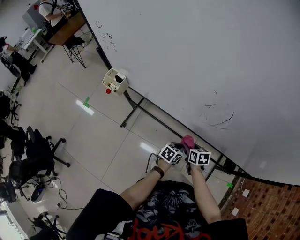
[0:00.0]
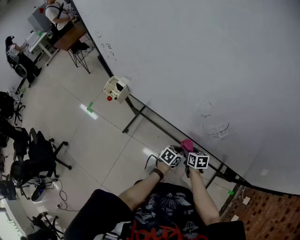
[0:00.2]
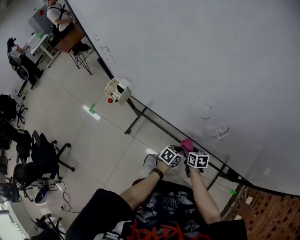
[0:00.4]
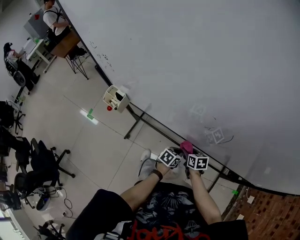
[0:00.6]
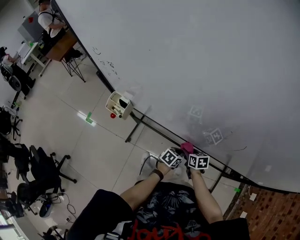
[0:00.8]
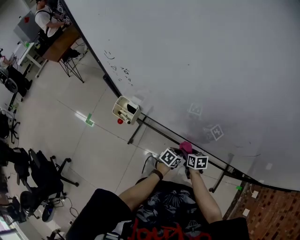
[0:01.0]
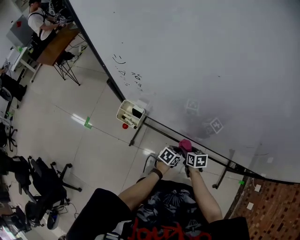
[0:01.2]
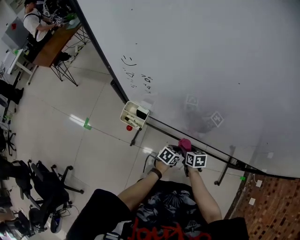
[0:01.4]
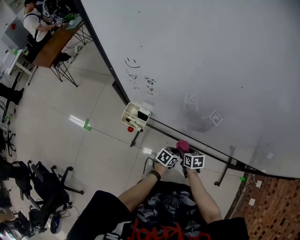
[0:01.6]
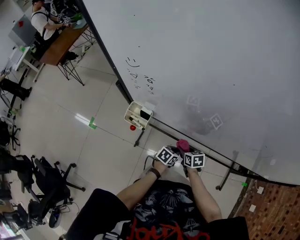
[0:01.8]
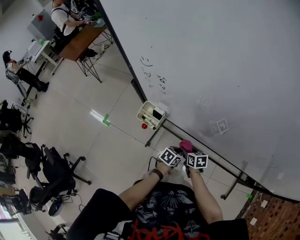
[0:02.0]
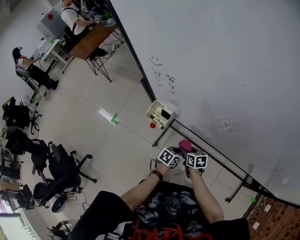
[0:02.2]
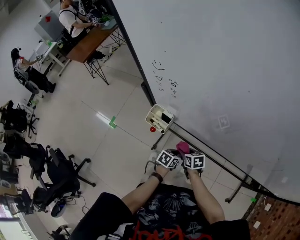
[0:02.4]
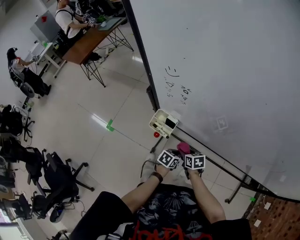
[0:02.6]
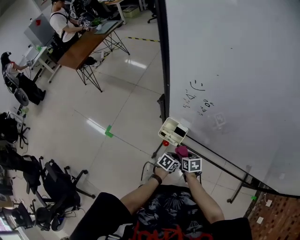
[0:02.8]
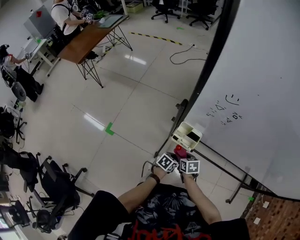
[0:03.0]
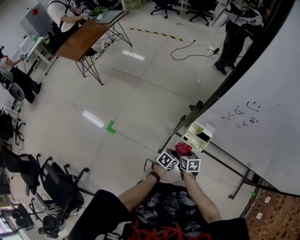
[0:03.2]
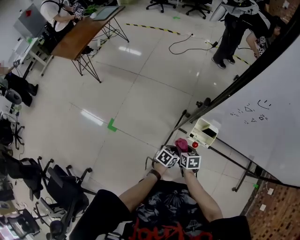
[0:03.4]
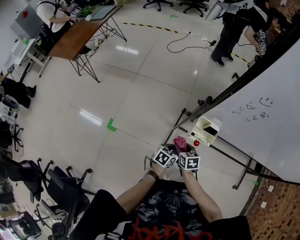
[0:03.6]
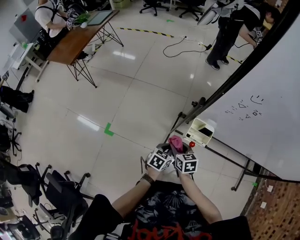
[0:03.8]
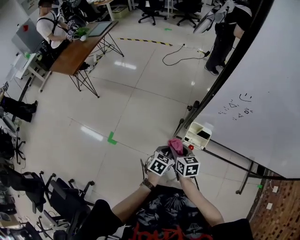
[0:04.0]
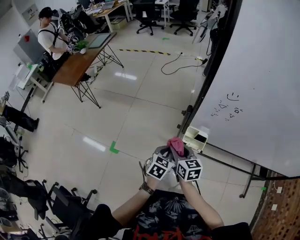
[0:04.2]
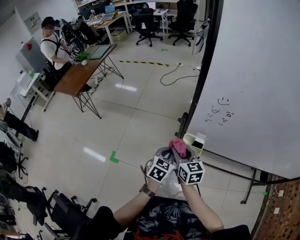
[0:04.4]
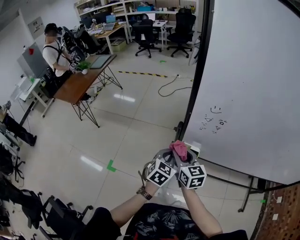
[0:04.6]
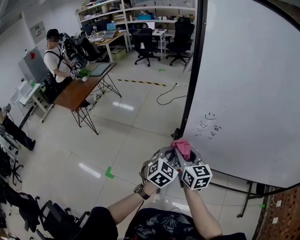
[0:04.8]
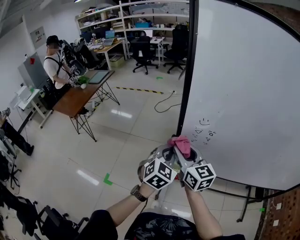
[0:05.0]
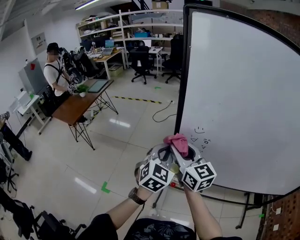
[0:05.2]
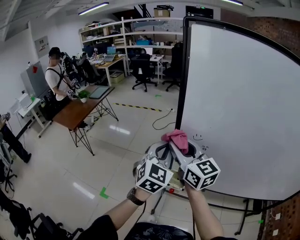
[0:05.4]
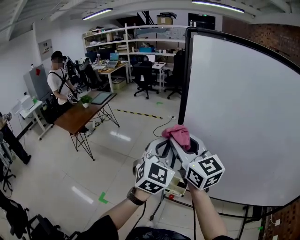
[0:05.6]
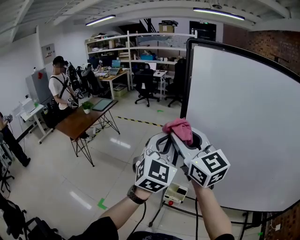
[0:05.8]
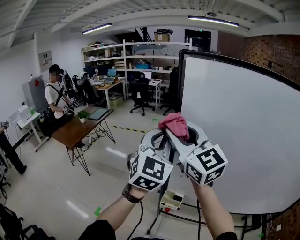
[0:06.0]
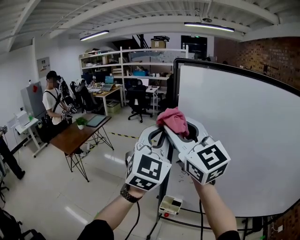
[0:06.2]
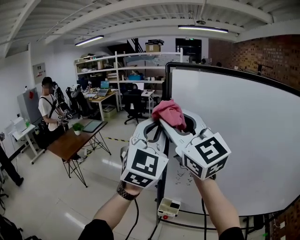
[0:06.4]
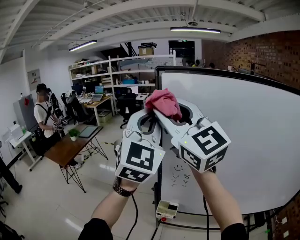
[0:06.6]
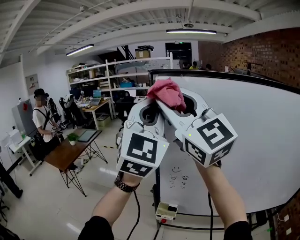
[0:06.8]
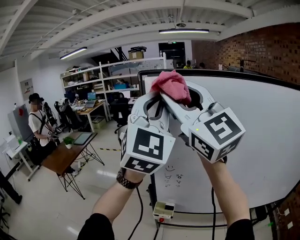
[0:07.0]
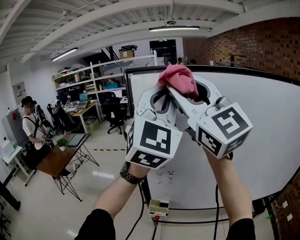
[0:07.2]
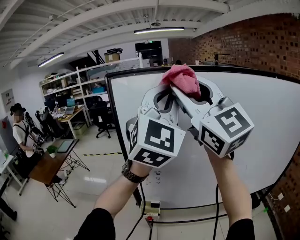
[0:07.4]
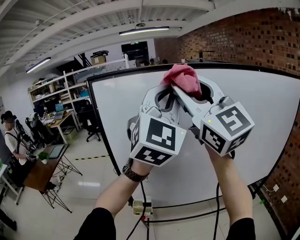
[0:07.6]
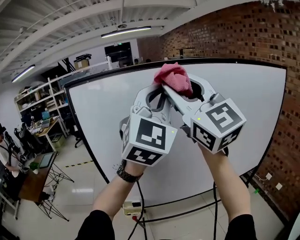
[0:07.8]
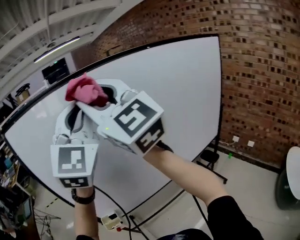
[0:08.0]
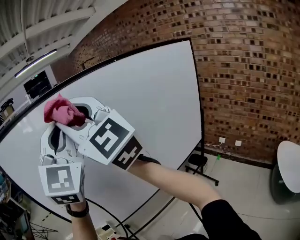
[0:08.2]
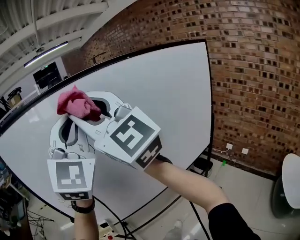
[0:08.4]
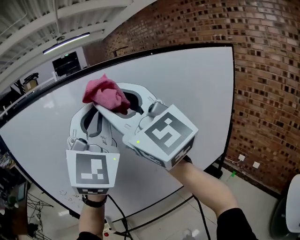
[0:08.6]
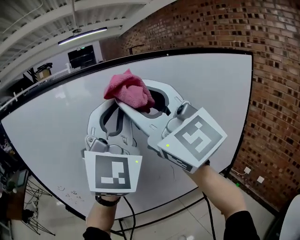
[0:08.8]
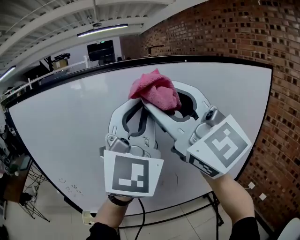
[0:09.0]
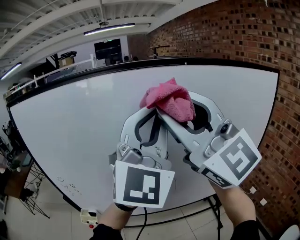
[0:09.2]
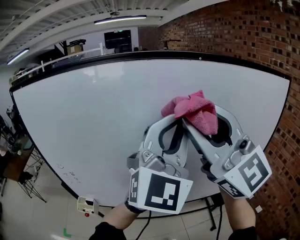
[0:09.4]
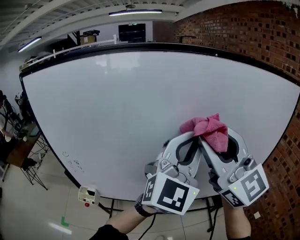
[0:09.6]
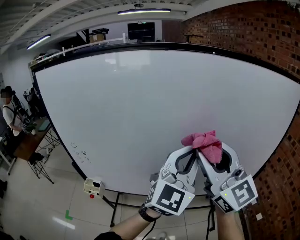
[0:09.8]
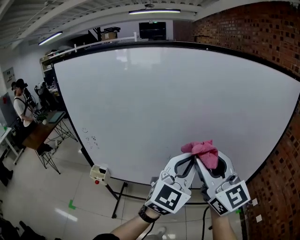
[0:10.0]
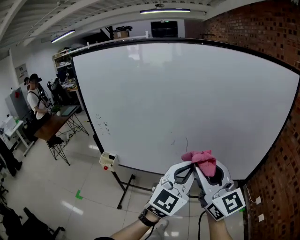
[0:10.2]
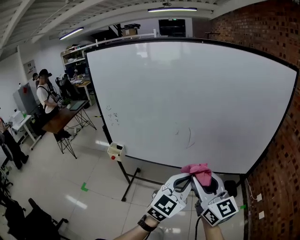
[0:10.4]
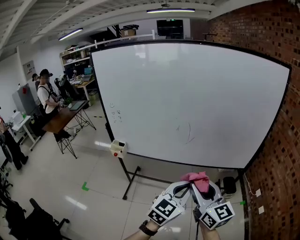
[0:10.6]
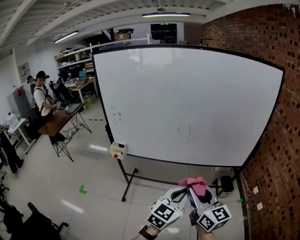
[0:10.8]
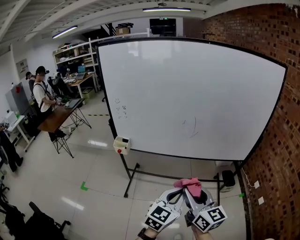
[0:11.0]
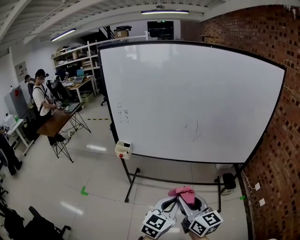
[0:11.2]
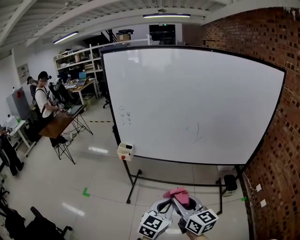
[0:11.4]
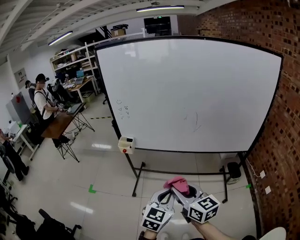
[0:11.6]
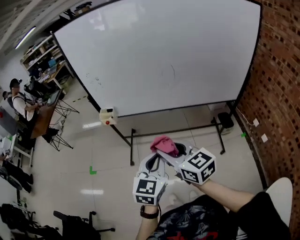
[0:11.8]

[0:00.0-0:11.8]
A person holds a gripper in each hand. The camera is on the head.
0:00.0 to 0:01.4: Both grippers move to the left, about 20 cm.
0:01.4 to 0:03.0: The grippers both shift to the left by approximately 25 cm.
0:03.0 to 0:04.4: The right gripper is displaced upward by about 25 cm, and tips its fingers upward by about 30 degrees; the left gripper is displaced upward and to the left by roughly 25 cm, and changes its angle by roughly 30 degrees.
0:04.4 to 0:06.0: Both grippers move upward, about 40 cm. The left gripper tips its fingers upward by roughly 40 degrees, while the right gripper angles its fingers upward, by approximately 30 degrees.
0:06.0 to 0:07.4: Both grippers move upward, to the right and backward, roughly 25 cm. The right gripper changes its angle by some 30 degrees; the left gripper turns by approximately 30 degrees.
0:07.4 to 0:08.8: The grippers both shift to the right by some 20 cm.
0:08.8 to 0:10.4: The grippers both shift downward, to the right and backward by roughly 40 cm. The left gripper turns by about 40 degrees. Meanwhile the right gripper swivels about 40 degrees.
0:10.4 to 0:11.8: The left gripper moves to the left and backward, roughly 20 cm; the right gripper goes roughly 20 cm to the left, and changes its angle by roughly 20 degrees.

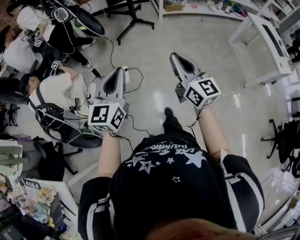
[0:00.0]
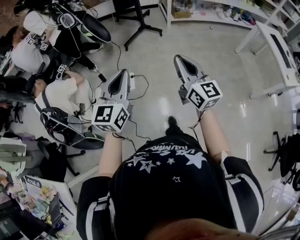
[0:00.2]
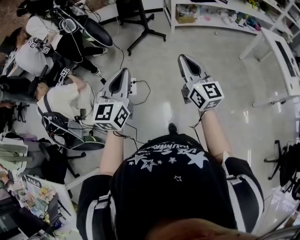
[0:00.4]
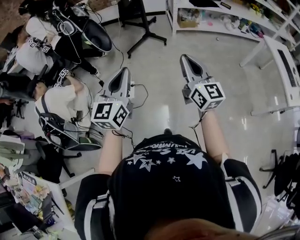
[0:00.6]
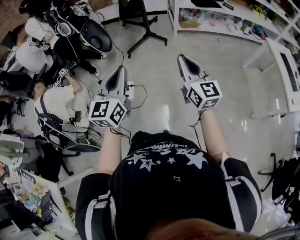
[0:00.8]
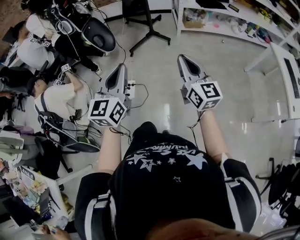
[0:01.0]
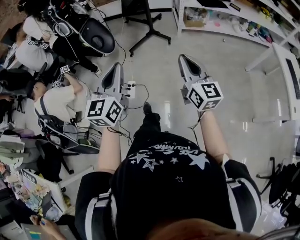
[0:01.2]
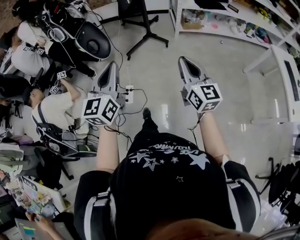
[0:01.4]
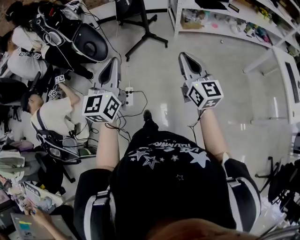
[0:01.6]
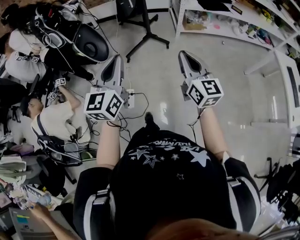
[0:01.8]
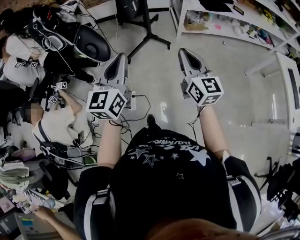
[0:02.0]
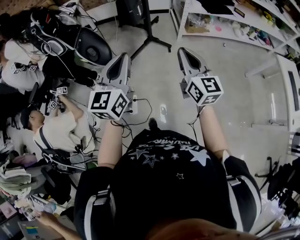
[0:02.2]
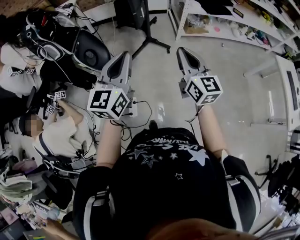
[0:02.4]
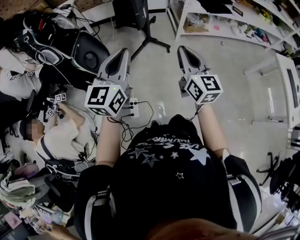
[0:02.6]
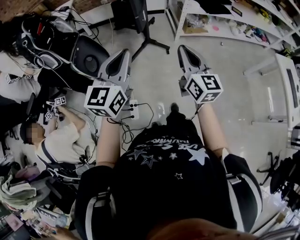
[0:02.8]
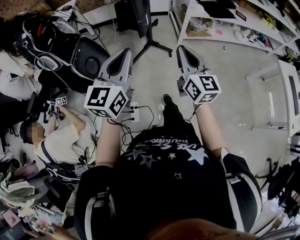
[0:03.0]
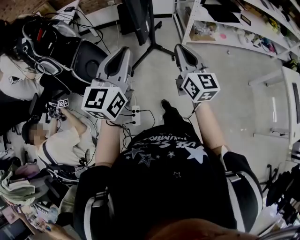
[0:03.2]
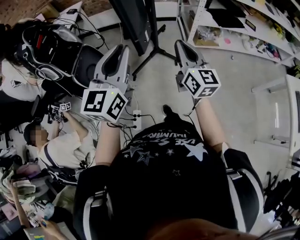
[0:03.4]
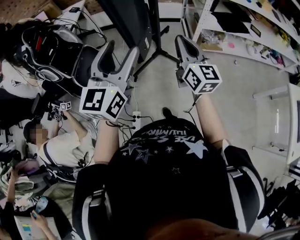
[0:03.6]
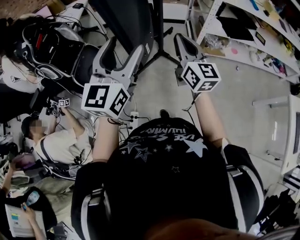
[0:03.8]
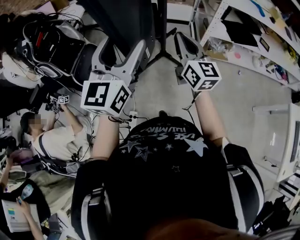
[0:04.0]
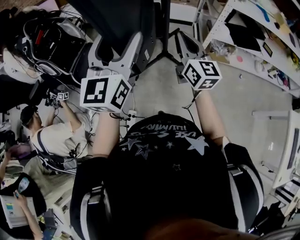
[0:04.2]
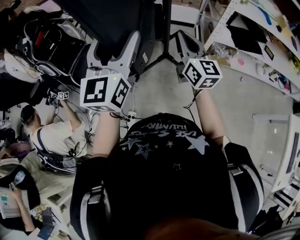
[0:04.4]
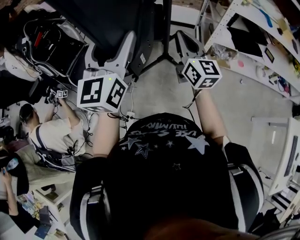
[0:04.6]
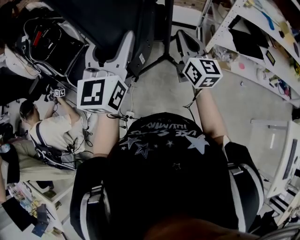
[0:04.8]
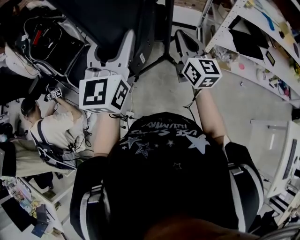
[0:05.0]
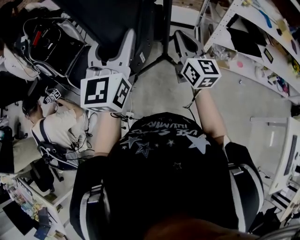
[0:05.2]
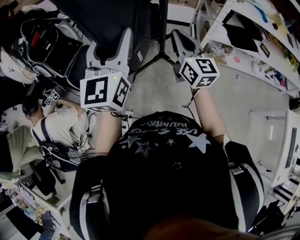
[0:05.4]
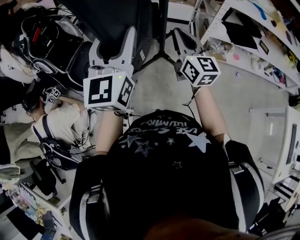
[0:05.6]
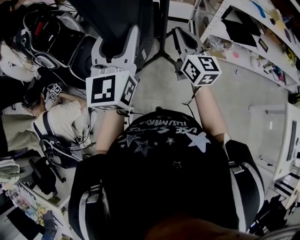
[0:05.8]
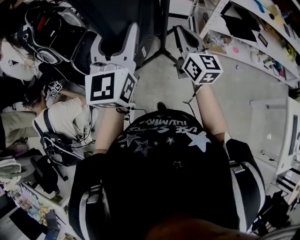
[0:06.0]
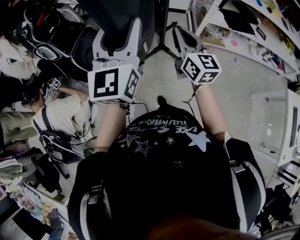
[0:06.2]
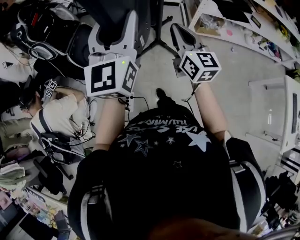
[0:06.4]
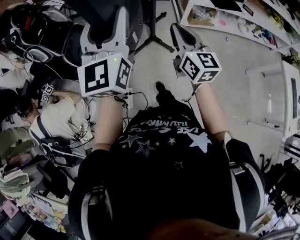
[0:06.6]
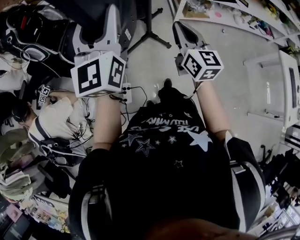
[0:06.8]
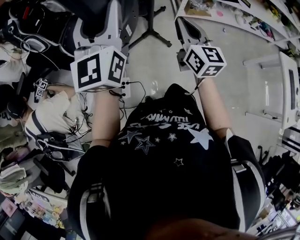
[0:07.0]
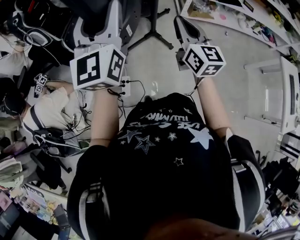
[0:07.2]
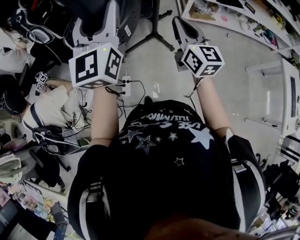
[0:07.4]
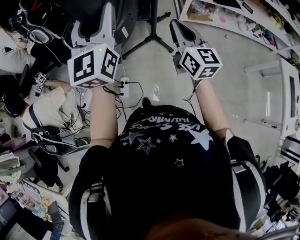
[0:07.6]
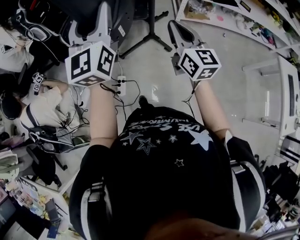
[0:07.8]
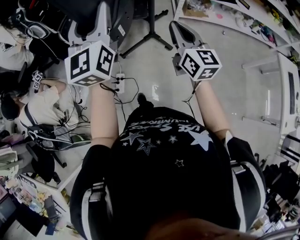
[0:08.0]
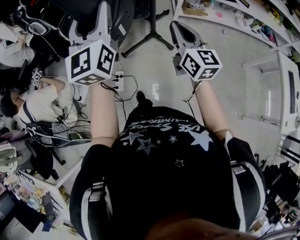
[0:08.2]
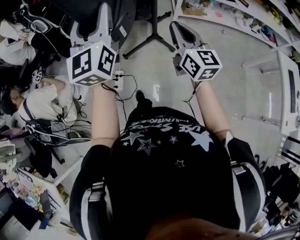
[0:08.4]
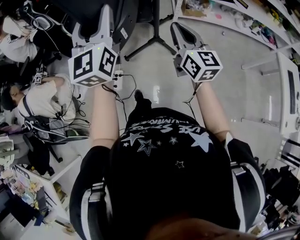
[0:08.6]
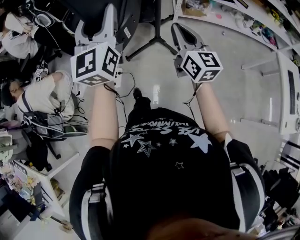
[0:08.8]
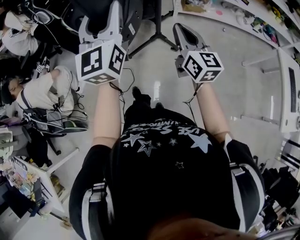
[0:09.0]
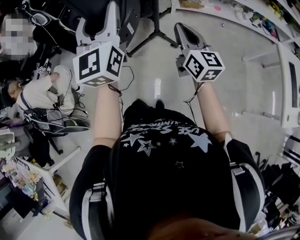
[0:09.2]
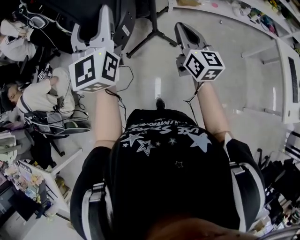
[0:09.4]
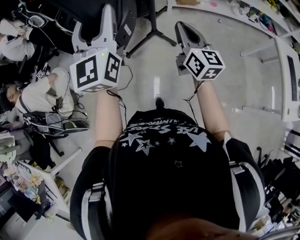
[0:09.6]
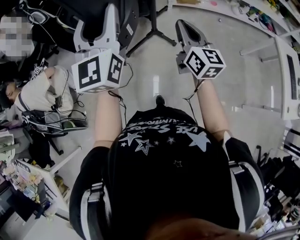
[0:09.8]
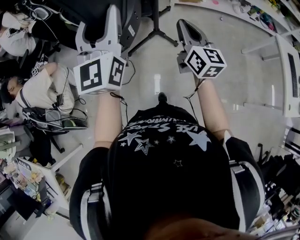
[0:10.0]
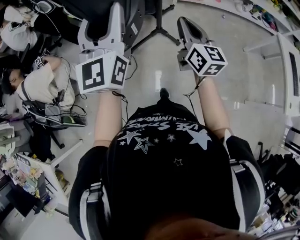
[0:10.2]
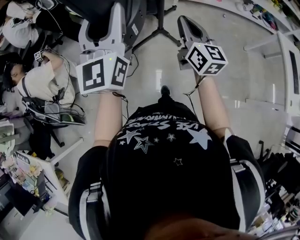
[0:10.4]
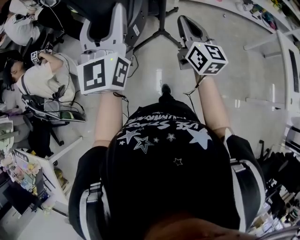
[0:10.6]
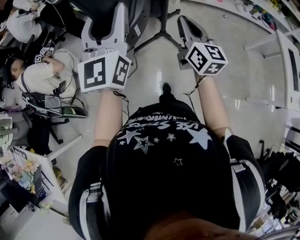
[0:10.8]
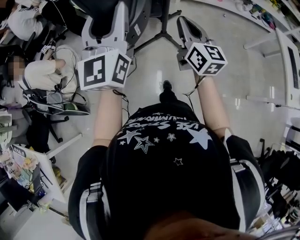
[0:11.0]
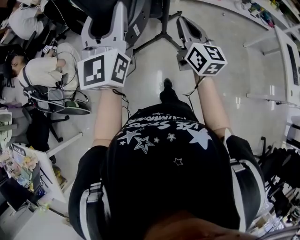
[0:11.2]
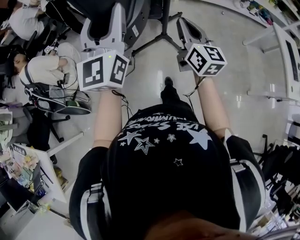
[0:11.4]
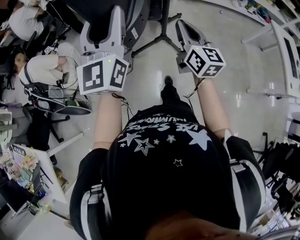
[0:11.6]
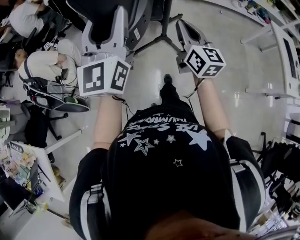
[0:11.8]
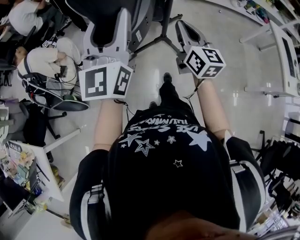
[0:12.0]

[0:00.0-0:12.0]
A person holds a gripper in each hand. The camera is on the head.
0:00.0 to 0:01.6: The grippers both shift forward by roughly 35 cm.
0:01.6 to 0:03.0: The left gripper goes approximately 25 cm forward, while the right gripper shifts some 25 cm forward and to the left.
0:03.0 to 0:04.4: Both grippers travel together forward, some 25 cm. The left gripper turns by some 20 degrees, and opens.
0:04.4 to 0:06.0: The right gripper is displaced backward and to the left by about 10 cm. The left gripper moves backward, roughly 5 cm.
0:06.0 to 0:07.6: Both grippers move backward, some 20 cm.
0:07.6 to 0:09.0: The two grippers go approximately 20 cm backward and to the right.
0:09.0 to 0:10.4: The right gripper travels backward by some 10 cm, while the left gripper is displaced backward and to the left by roughly 15 cm.
0:10.4 to 0:12.0: The right gripper travels backward and to the left by some 20 cm. The left gripper goes approximately 20 cm backward.
